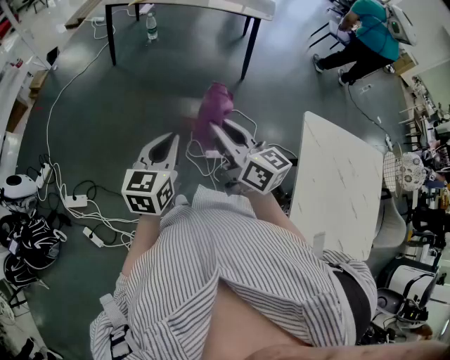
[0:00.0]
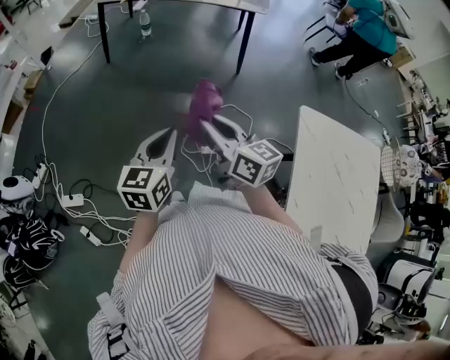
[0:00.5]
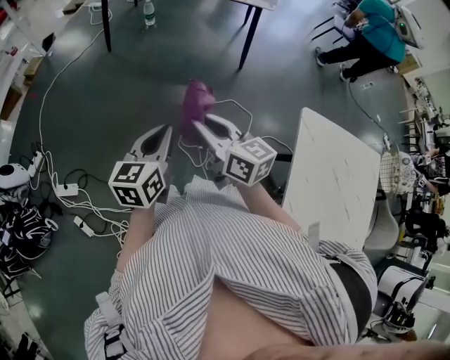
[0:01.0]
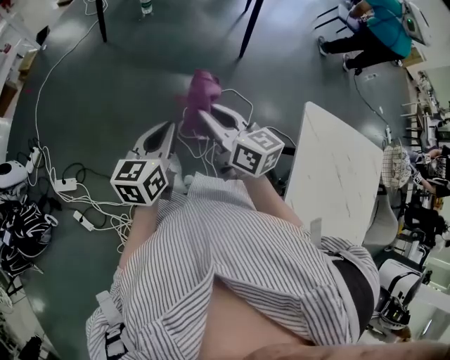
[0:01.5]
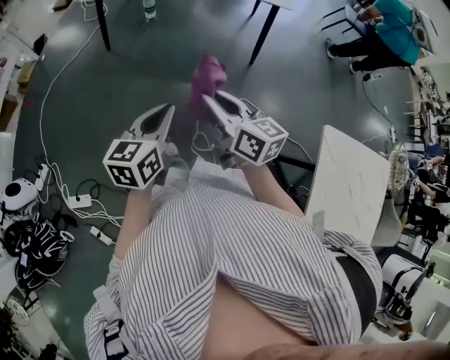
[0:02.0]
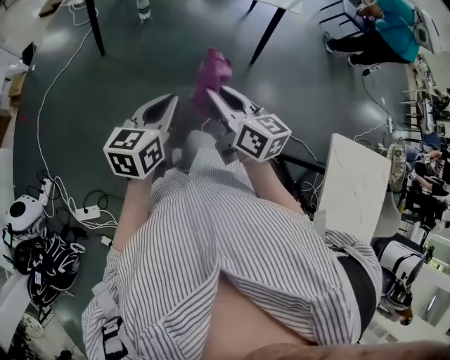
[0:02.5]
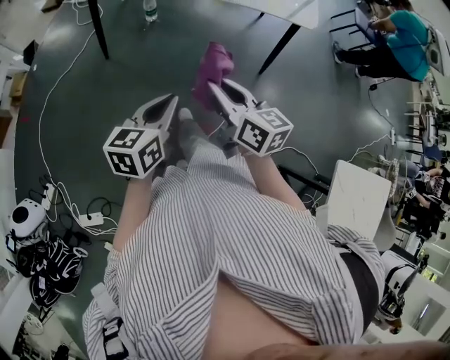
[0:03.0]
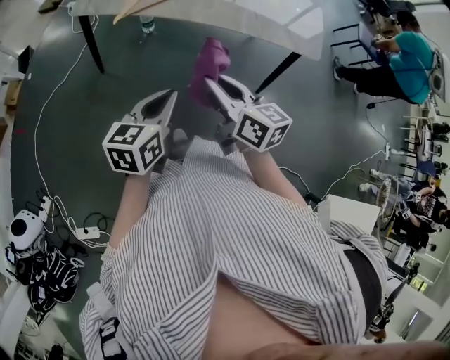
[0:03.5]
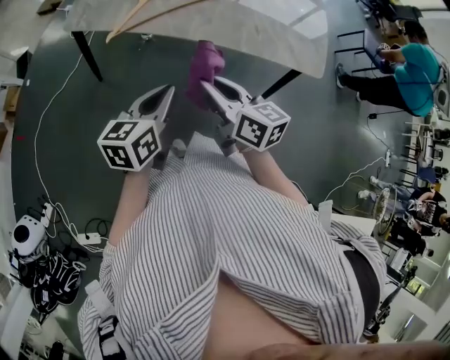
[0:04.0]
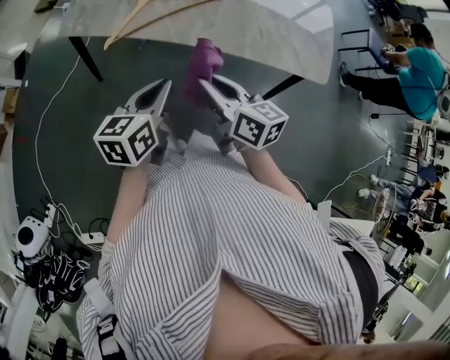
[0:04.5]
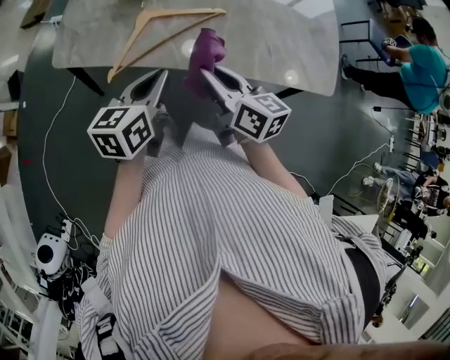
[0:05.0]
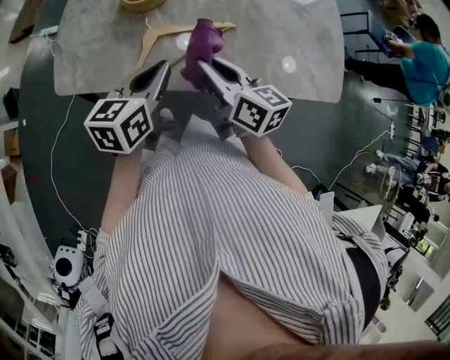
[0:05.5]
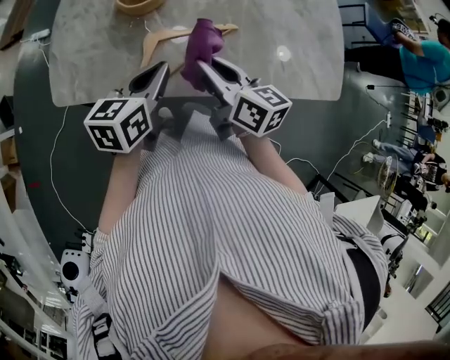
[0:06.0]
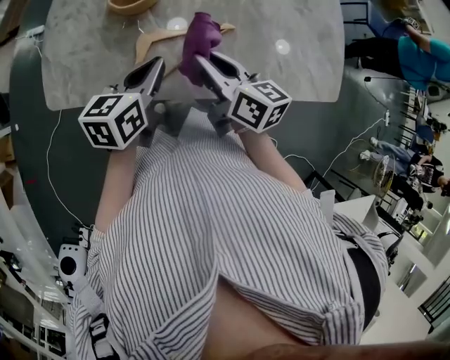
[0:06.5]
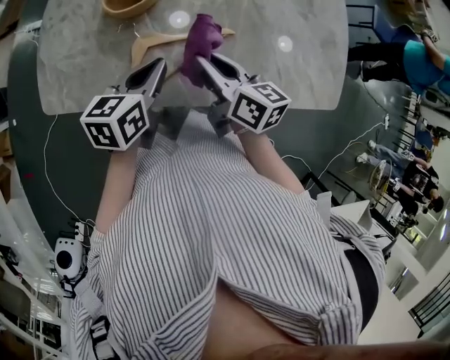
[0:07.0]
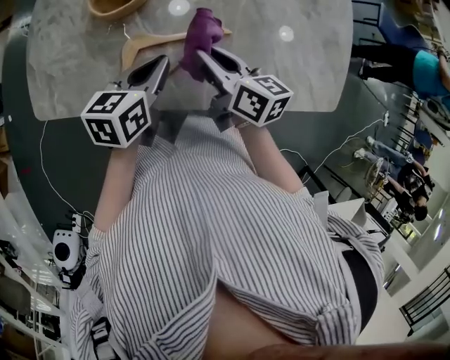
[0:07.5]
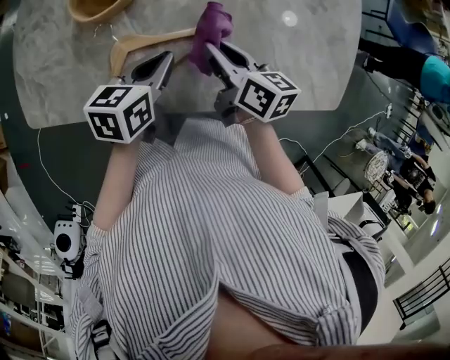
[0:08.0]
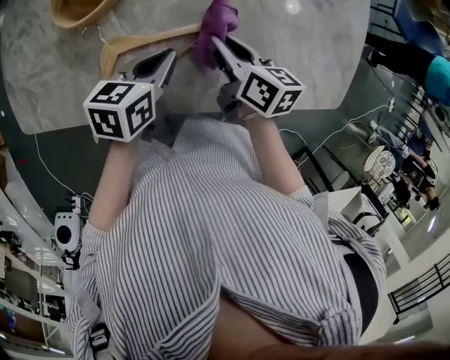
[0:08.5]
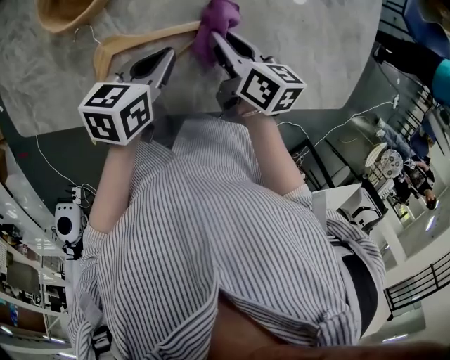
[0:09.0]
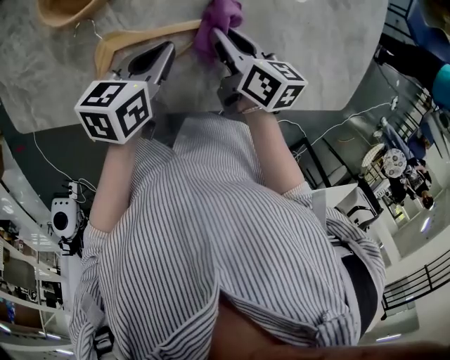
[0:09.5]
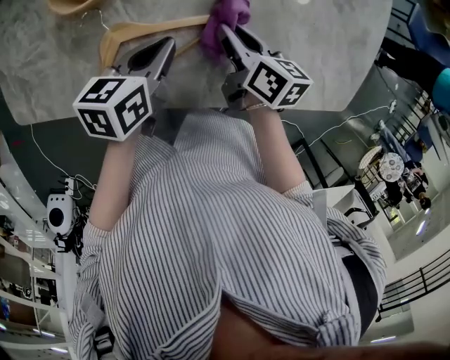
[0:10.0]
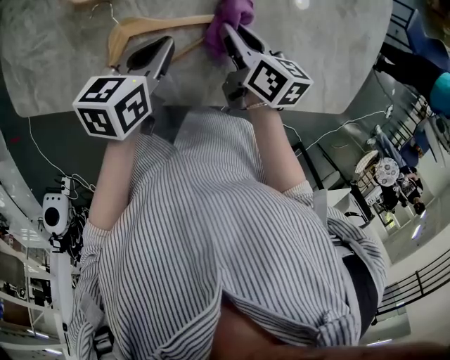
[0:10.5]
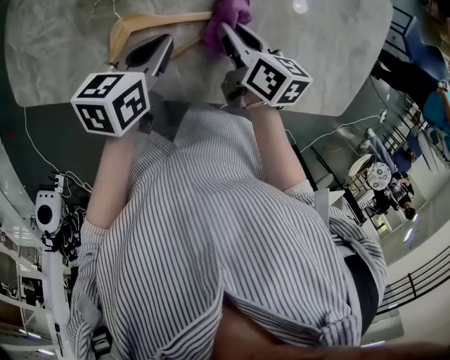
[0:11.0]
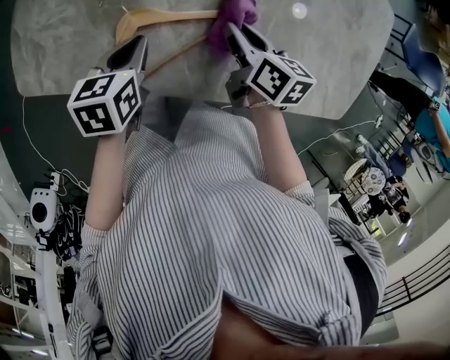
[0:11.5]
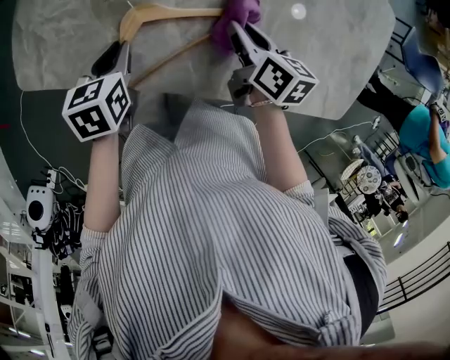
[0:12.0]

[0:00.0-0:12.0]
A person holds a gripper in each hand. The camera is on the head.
0:00.0 to 0:02.0: Both grippers travel together forward, some 20 cm.
0:02.0 to 0:04.0: The two grippers travel together, forward, approximately 50 cm.
0:04.0 to 0:06.0: Both grippers move forward, roughly 35 cm.
0:06.0 to 0:08.0: The grippers both shift forward, downward and to the right by about 15 cm.
0:08.0 to 0:10.0: The right gripper travels downward by approximately 5 cm.
0:10.0 to 0:12.0: The right gripper moves to the left, approximately 5 cm. Meanwhile the left gripper travels to the left by about 15 cm, and swivels approximately 30 degrees.

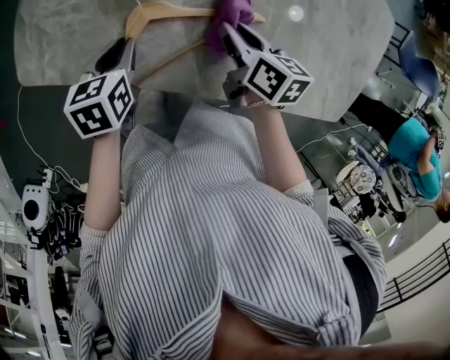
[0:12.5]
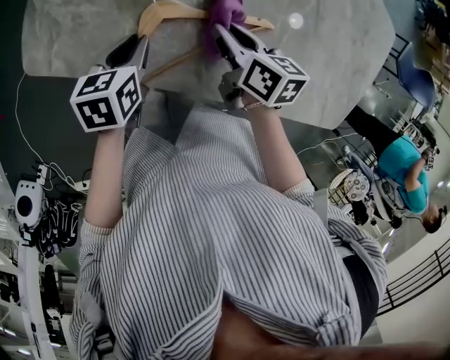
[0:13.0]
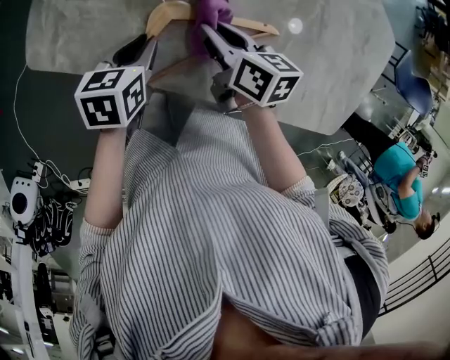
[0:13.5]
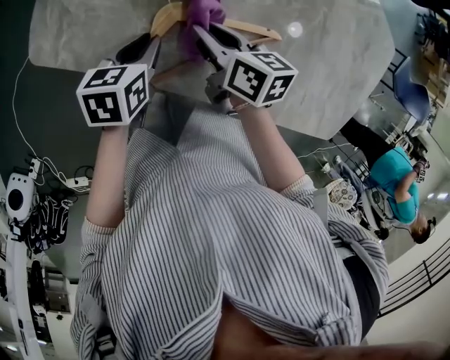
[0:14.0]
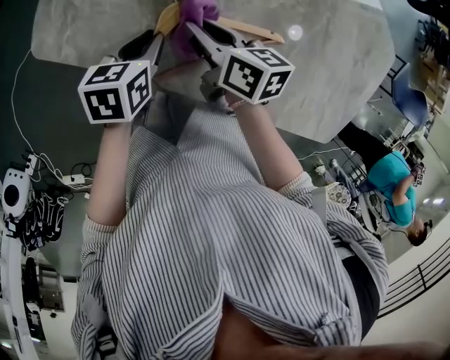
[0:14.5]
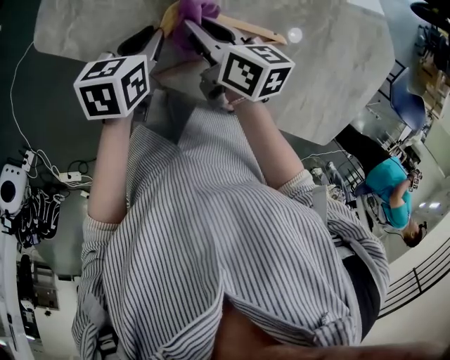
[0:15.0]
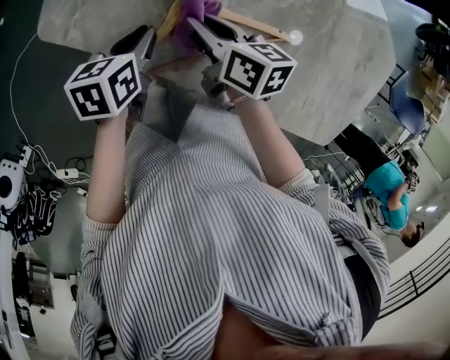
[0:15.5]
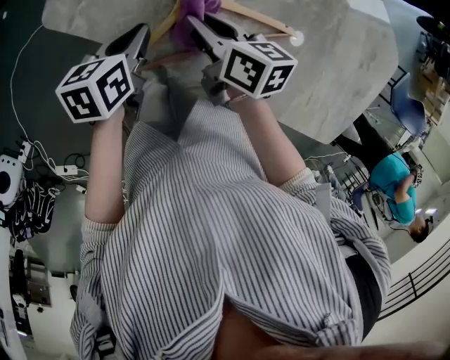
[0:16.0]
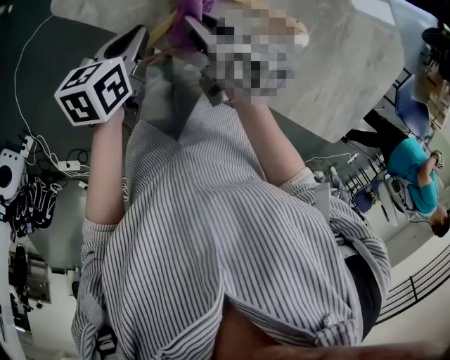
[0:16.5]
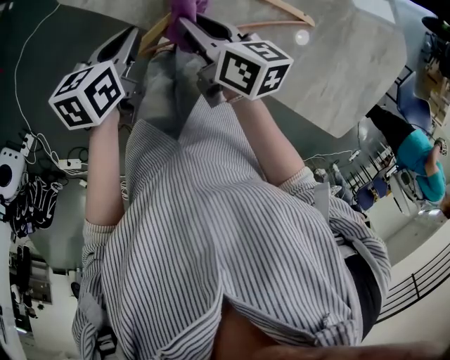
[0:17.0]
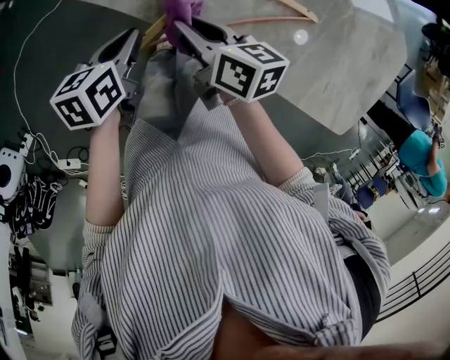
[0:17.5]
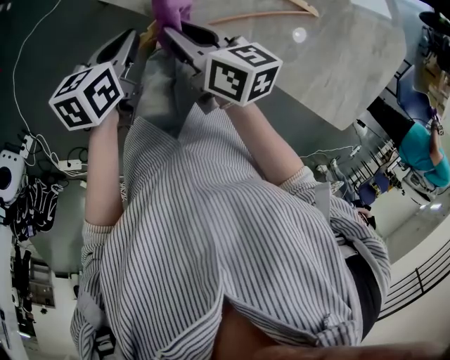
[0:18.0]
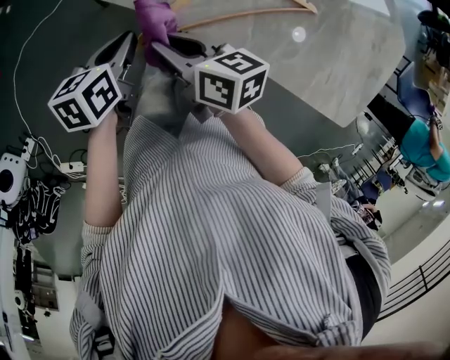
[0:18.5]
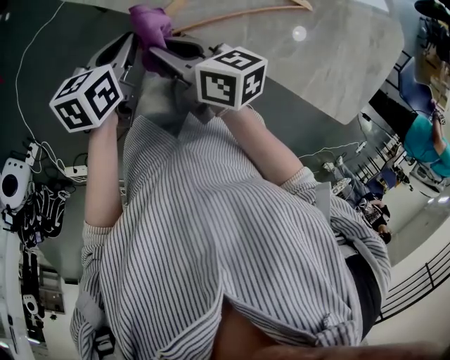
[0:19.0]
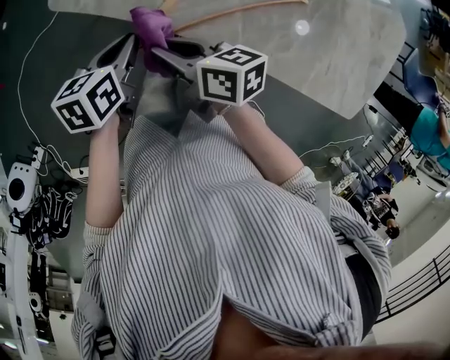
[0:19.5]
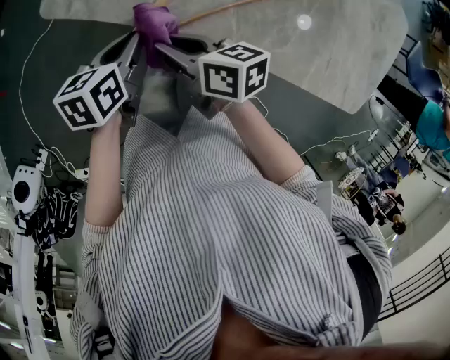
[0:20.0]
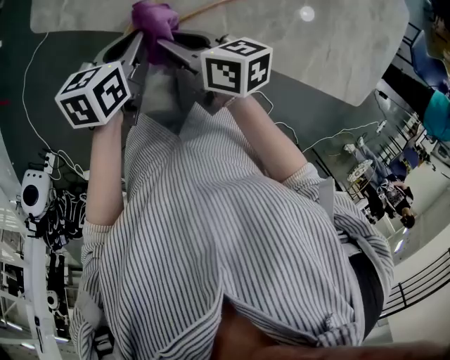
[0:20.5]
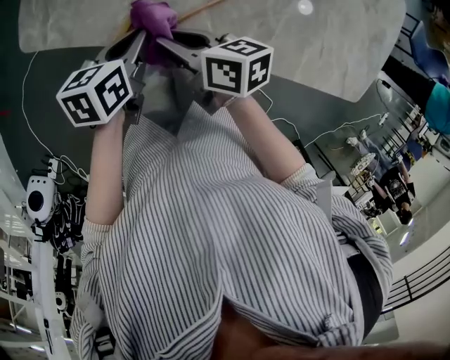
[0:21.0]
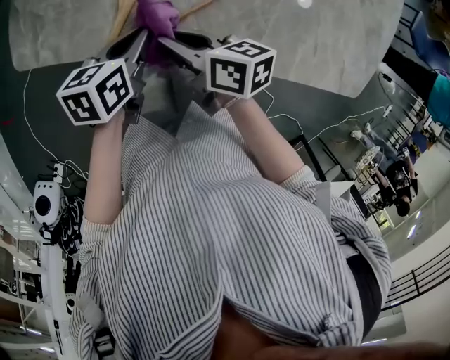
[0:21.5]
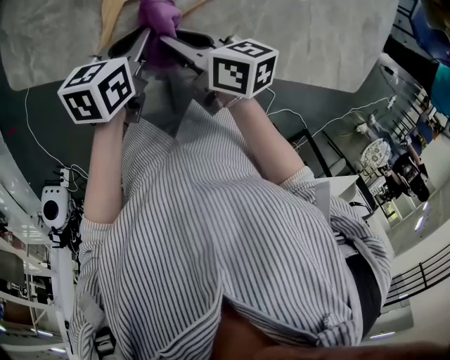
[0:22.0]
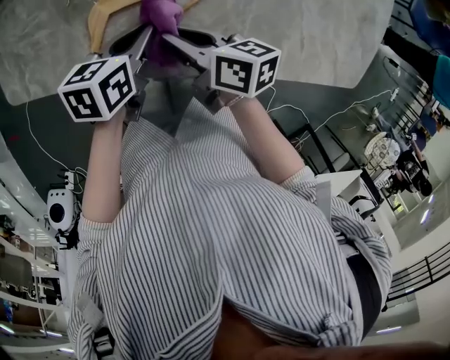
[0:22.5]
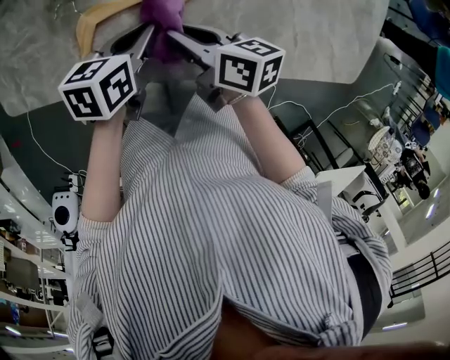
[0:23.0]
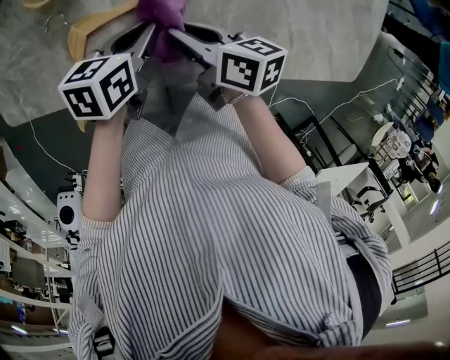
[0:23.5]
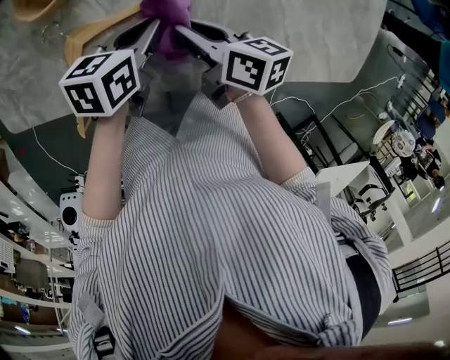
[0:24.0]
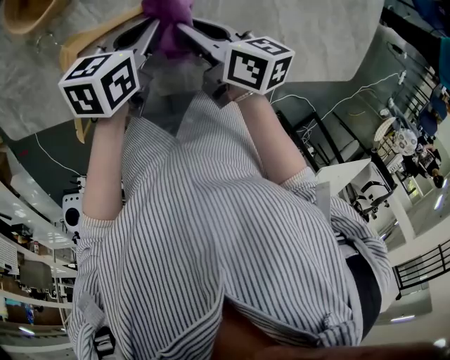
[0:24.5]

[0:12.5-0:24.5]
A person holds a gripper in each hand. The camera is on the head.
0:12.5 to 0:14.5: The right gripper travels to the left by about 15 cm.
0:14.5 to 0:16.5: The left gripper heads to the left, covering about 5 cm; the right gripper shifts by about 5 cm.
0:16.5 to 0:18.5: The left gripper shifts roughly 10 cm to the left and backward. Meanwhile the right gripper goes some 15 cm to the left and backward.
0:18.5 to 0:20.5: The grippers both shift to the right by approximately 10 cm.
0:20.5 to 0:22.5: The two grippers go roughly 15 cm to the right and forward.
0:22.5 to 0:24.5: The two grippers go about 10 cm to the right and forward.

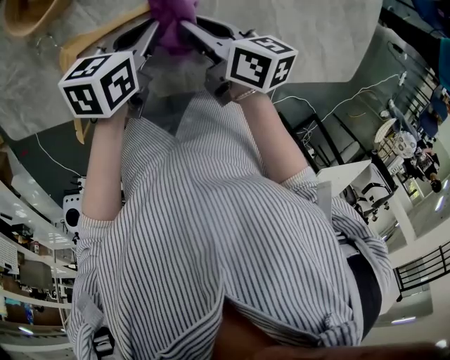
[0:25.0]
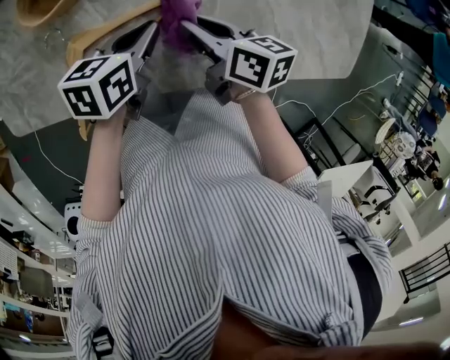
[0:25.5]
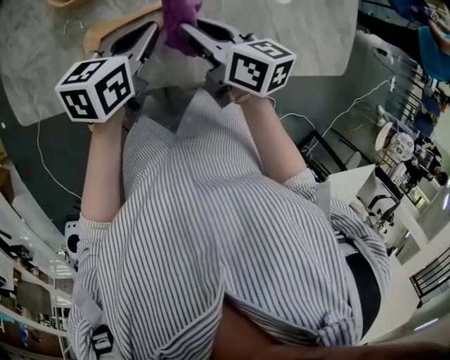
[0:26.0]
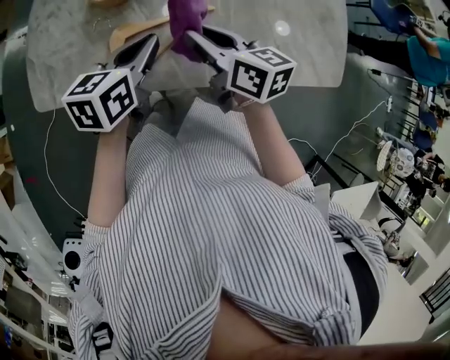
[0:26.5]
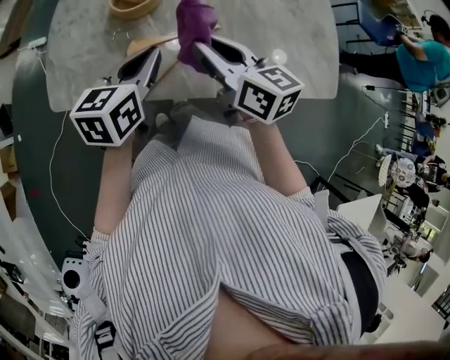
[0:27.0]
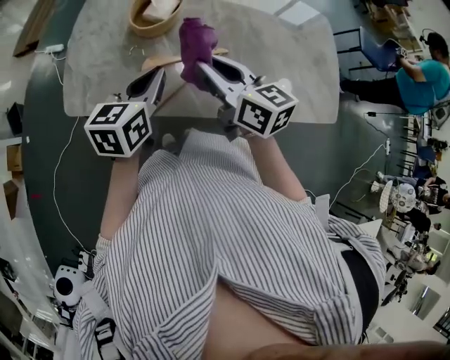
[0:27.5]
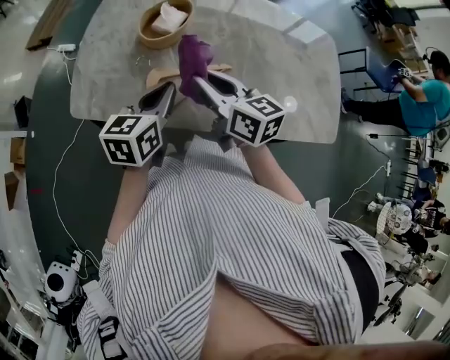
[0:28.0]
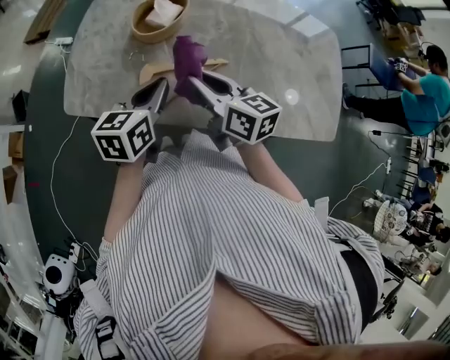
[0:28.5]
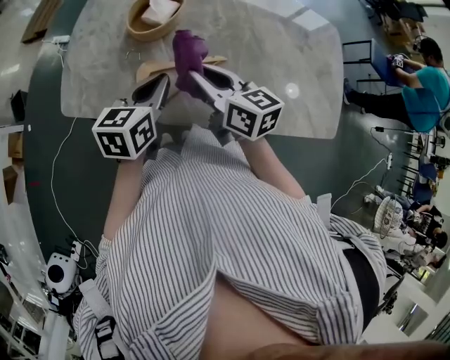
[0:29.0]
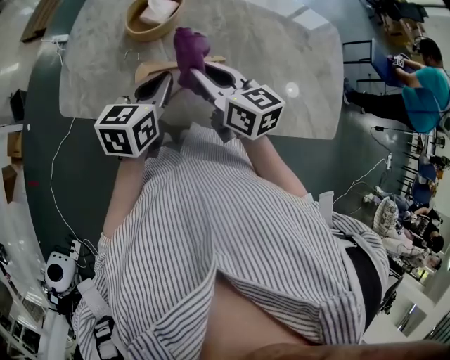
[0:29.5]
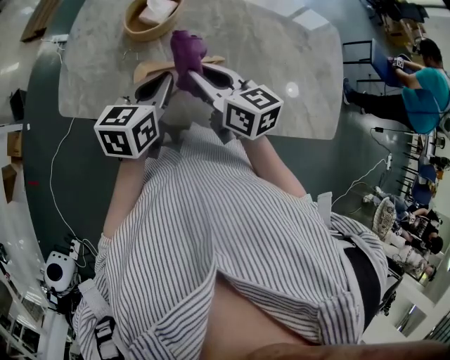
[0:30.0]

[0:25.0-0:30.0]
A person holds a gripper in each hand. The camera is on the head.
0:25.0 to 0:27.5: The two grippers go some 25 cm upward, to the left and backward. The right gripper rotates some 40 degrees. Meanwhile the left gripper rotates about 30 degrees.
0:27.5 to 0:30.0: The left gripper heads to the right, covering approximately 5 cm.
